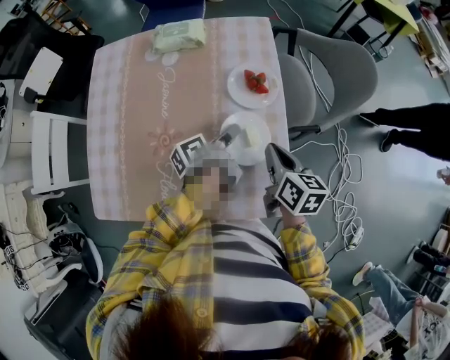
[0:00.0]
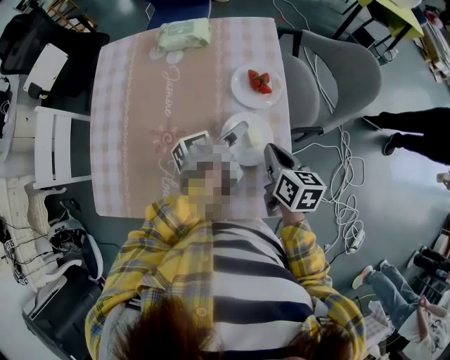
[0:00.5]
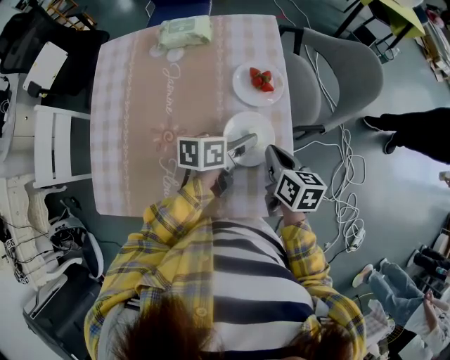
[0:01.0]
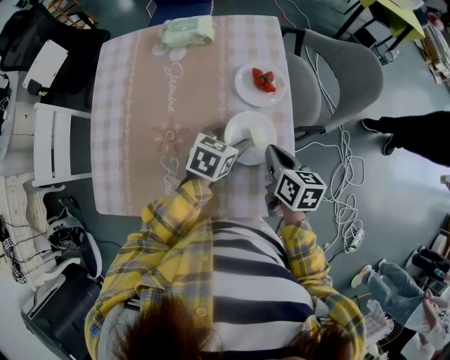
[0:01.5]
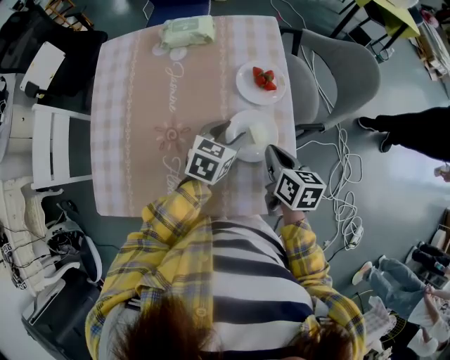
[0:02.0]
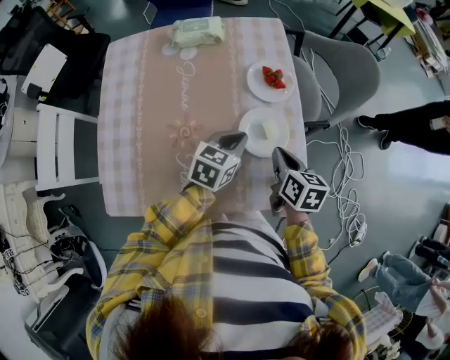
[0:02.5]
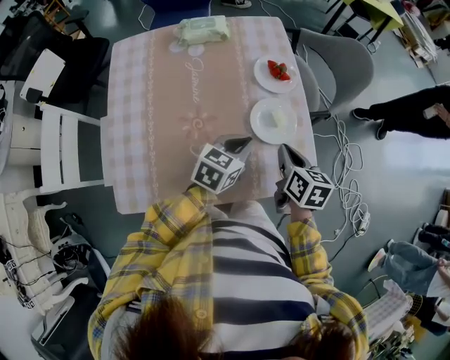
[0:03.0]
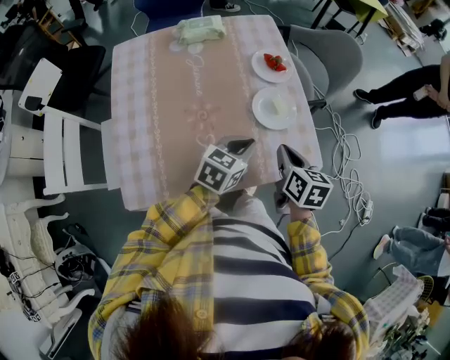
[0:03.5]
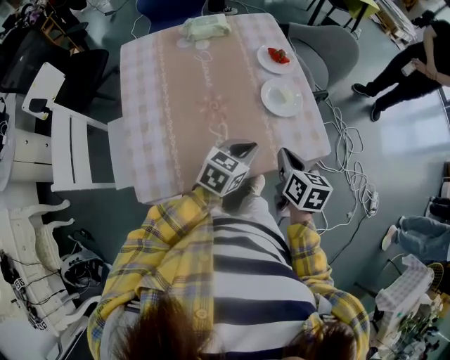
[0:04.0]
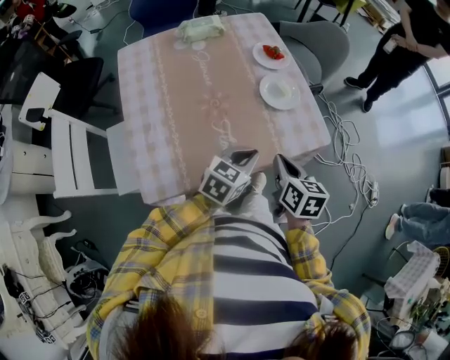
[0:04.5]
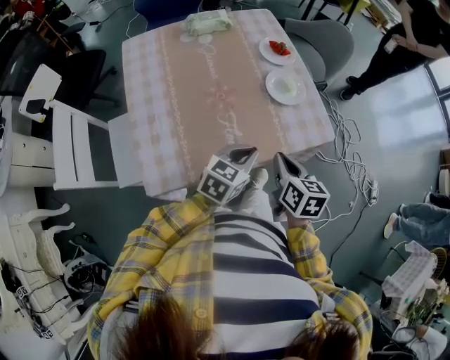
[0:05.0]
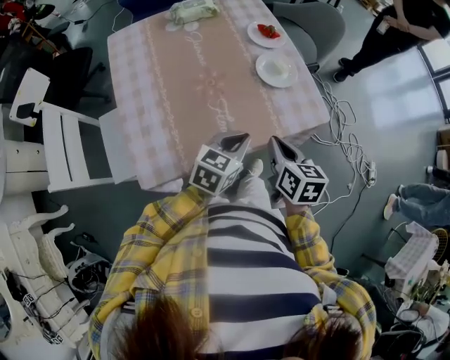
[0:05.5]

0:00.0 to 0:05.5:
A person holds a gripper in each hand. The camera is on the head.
0:02.0 to 0:03.5: The right gripper moves some 15 cm.
0:03.5 to 0:05.5: The right gripper ends up approximately 15 cm from where it was.

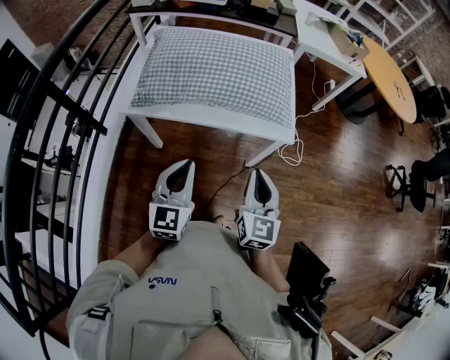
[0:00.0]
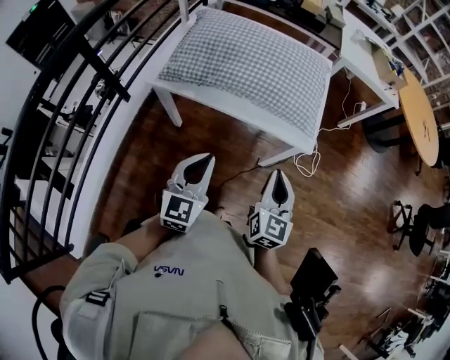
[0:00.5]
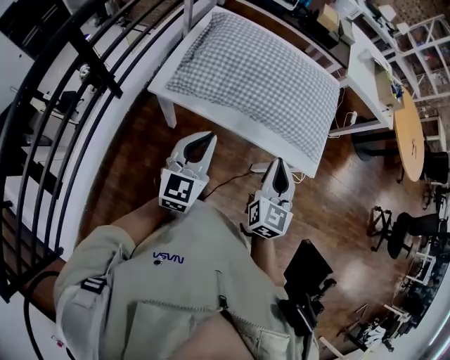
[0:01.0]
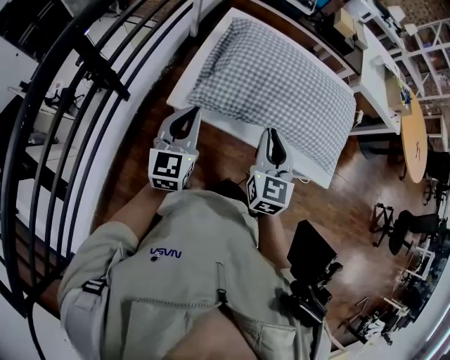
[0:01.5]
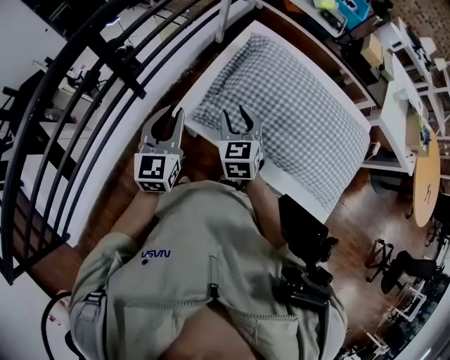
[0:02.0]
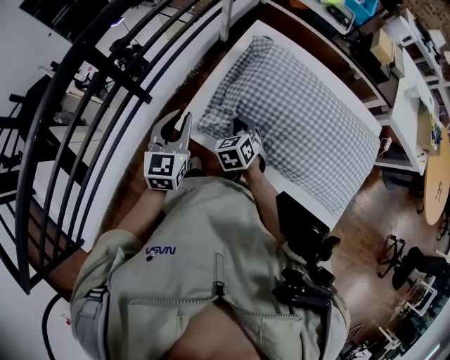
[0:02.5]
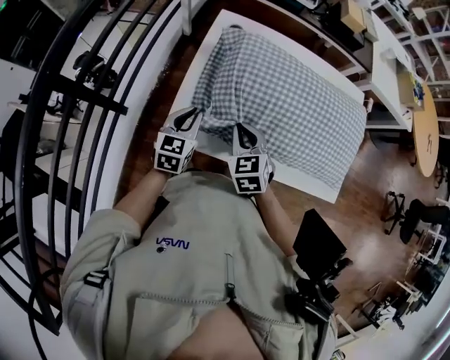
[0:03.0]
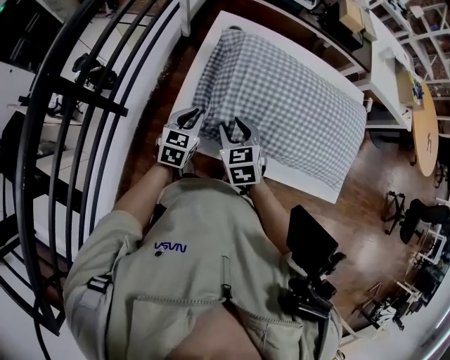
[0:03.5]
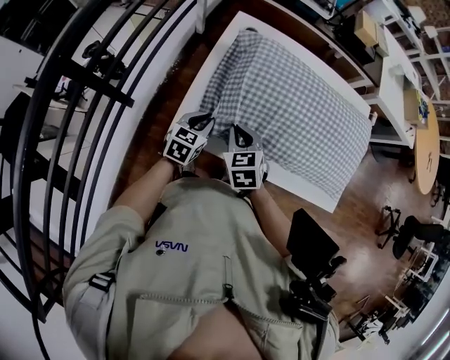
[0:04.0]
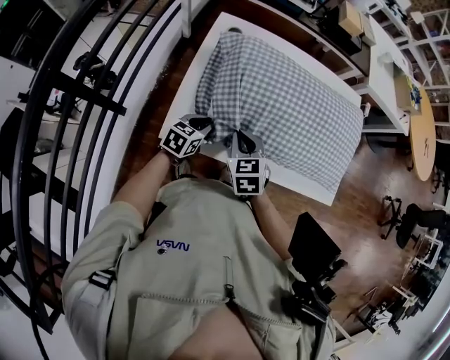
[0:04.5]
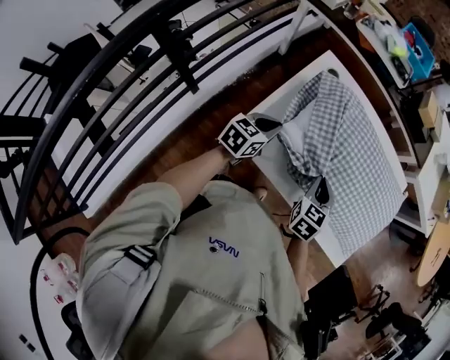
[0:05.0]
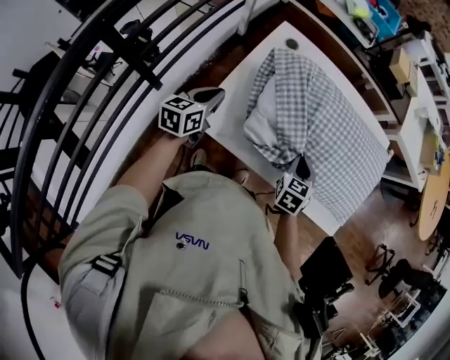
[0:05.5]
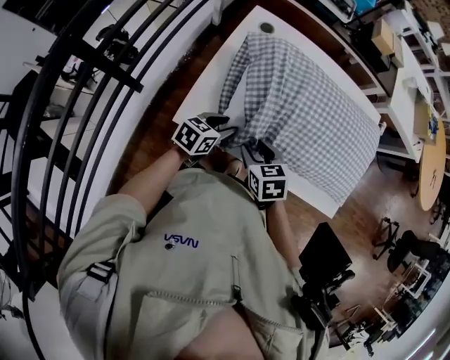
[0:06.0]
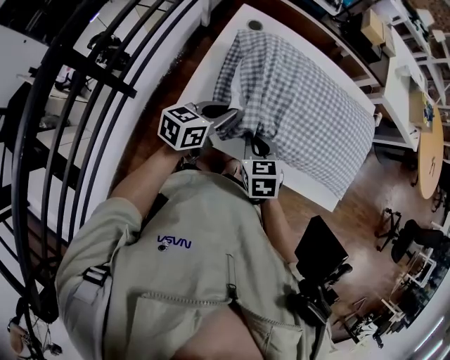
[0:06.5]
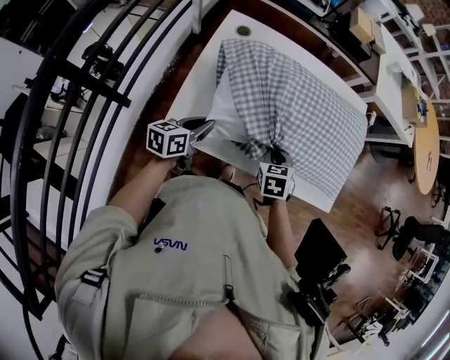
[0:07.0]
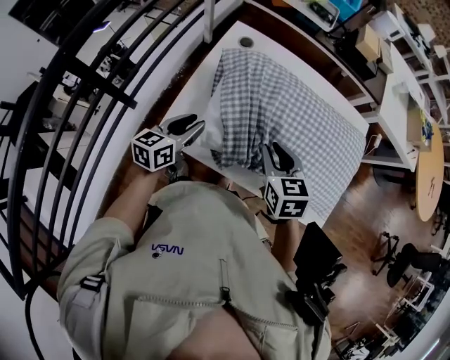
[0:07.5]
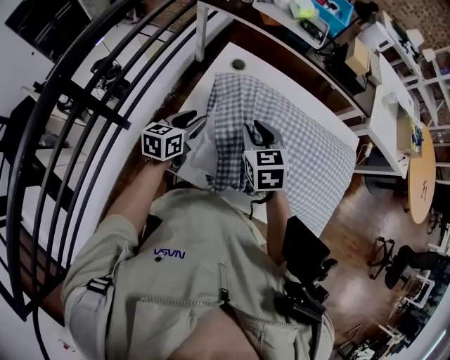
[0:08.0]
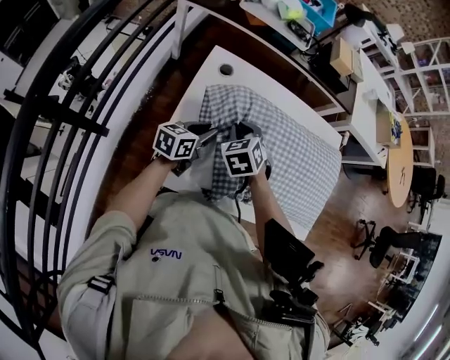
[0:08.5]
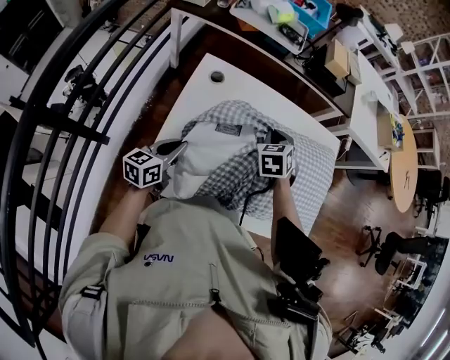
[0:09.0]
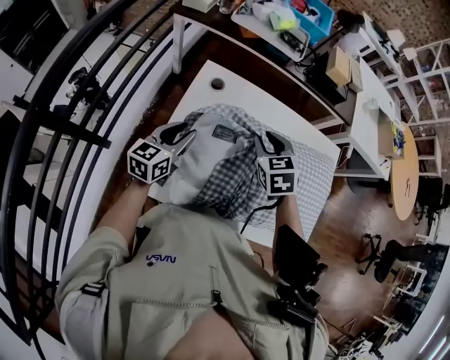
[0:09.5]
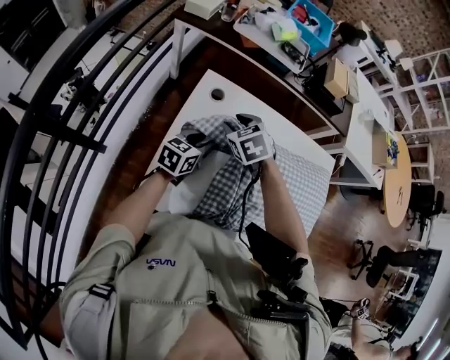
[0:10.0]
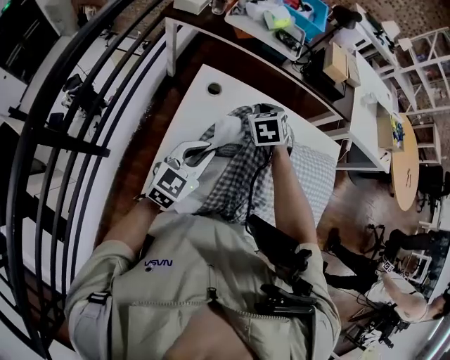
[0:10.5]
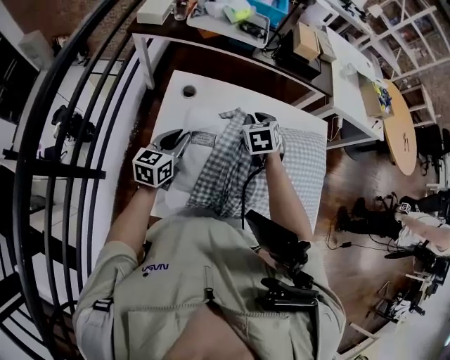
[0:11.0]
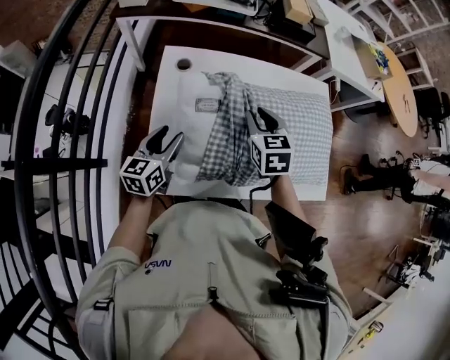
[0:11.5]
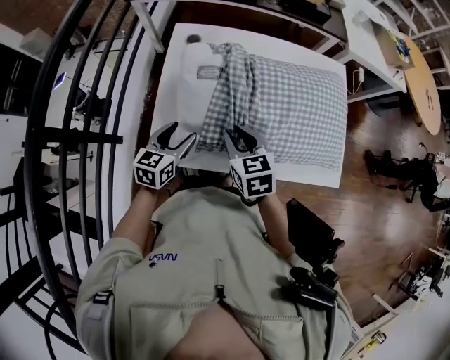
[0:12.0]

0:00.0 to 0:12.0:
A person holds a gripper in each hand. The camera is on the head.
0:00.0 to 0:02.0: The right gripper shifts by approximately 50 cm, swivels roughly 40 degrees, and opens its fingers; the left gripper changes place by roughly 40 cm, and changes its angle by about 30 degrees.
0:02.0 to 0:04.0: The right gripper travels downward by some 5 cm, and closes, while the left gripper is displaced downward, forward and to the right by roughly 20 cm, and changes its angle by roughly 40 degrees.
0:04.0 to 0:06.0: The two grippers go roughly 5 cm to the right. The right gripper opens its fingers; the left gripper swivels roughly 20 degrees, and opens.
0:06.0 to 0:08.0: The left gripper goes approximately 15 cm forward, to the left and upward, turns by about 30 degrees, and closes, then reopens. Meanwhile the right gripper shifts roughly 20 cm forward and upward, and closes.
0:08.0 to 0:10.0: The left gripper moves forward and backward over about 10 cm, changing direction 2 times, and closes, then opens again. Meanwhile the right gripper moves left and right over approximately 15 cm, changing direction 2 times, and closes and opens again.
0:10.0 to 0:12.0: The left gripper swings forward and backward, roughly 20 cm each way, with 2 reversals, and opens its fingers. Meanwhile the right gripper heads backward and to the right, covering some 25 cm, changes its angle by about 30 degrees, and closes, then reopens.

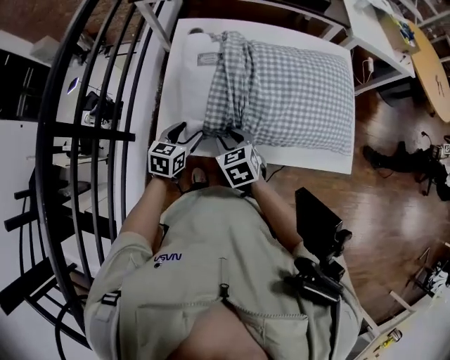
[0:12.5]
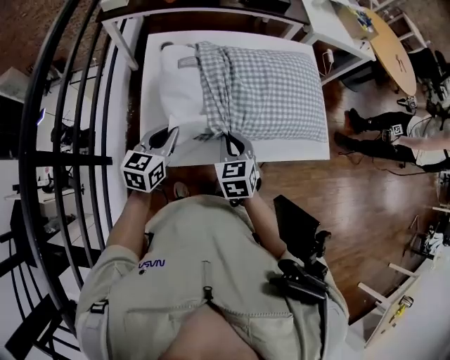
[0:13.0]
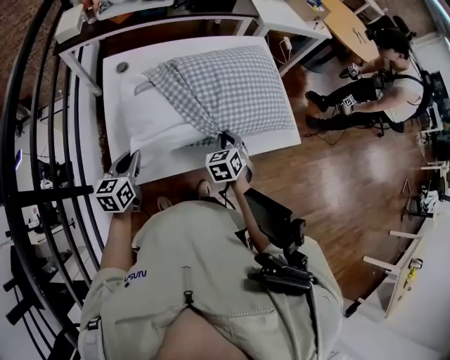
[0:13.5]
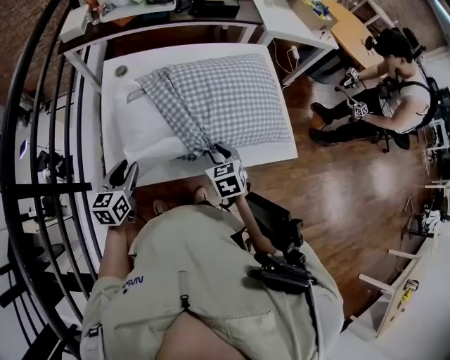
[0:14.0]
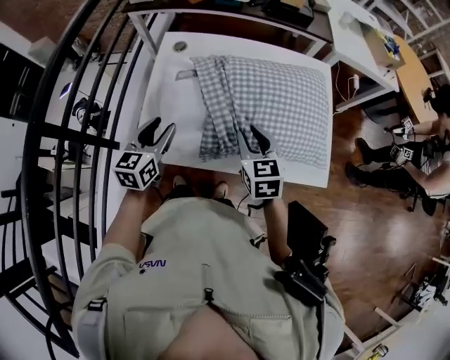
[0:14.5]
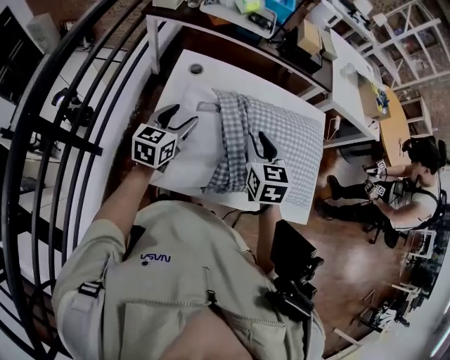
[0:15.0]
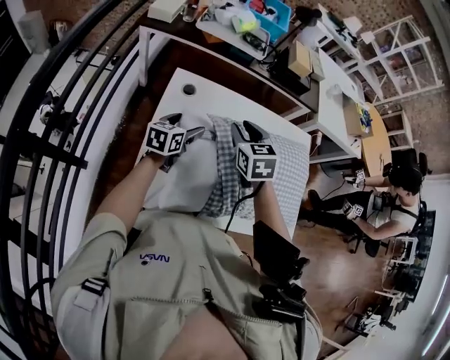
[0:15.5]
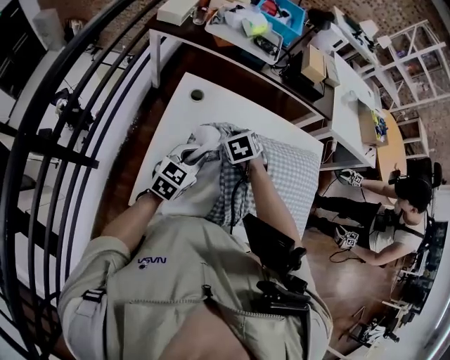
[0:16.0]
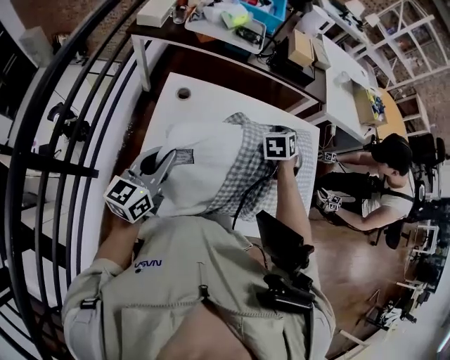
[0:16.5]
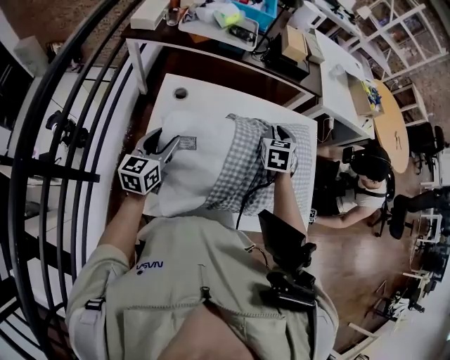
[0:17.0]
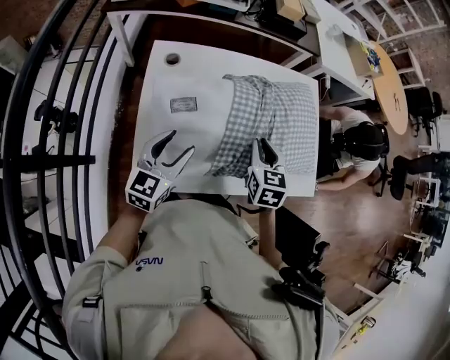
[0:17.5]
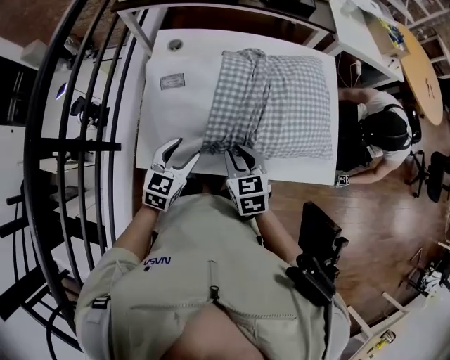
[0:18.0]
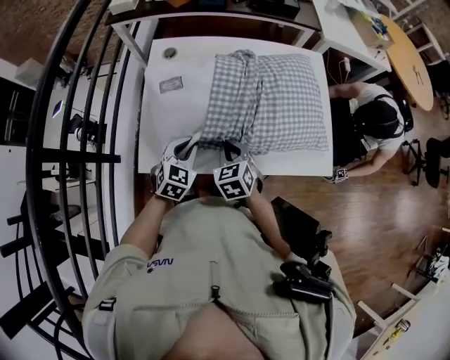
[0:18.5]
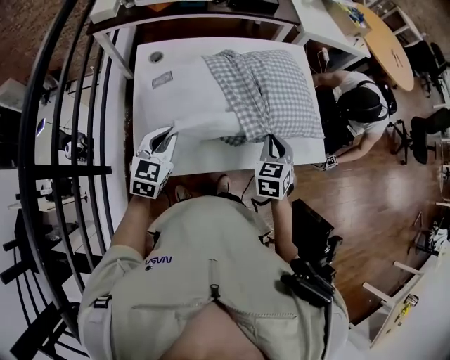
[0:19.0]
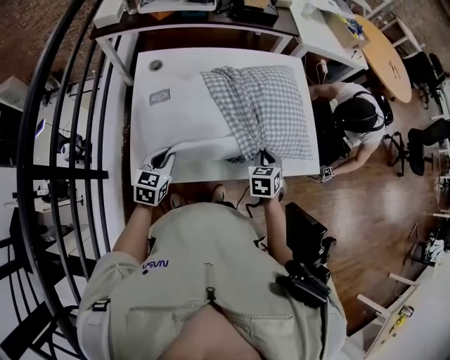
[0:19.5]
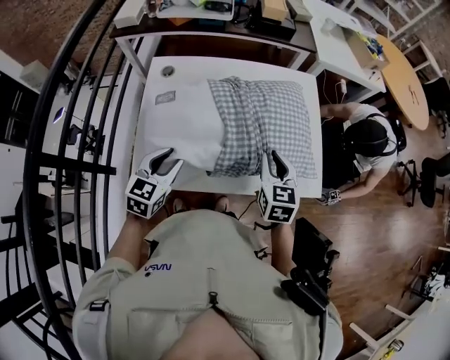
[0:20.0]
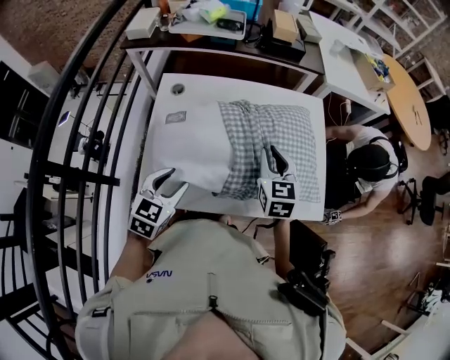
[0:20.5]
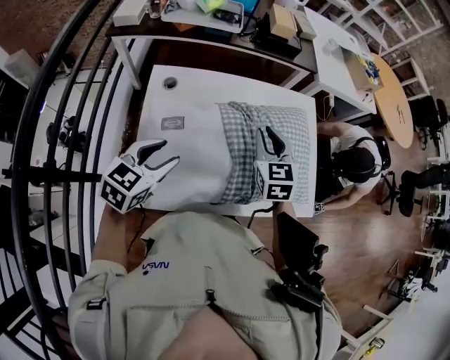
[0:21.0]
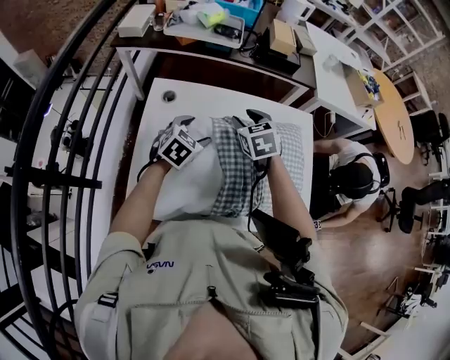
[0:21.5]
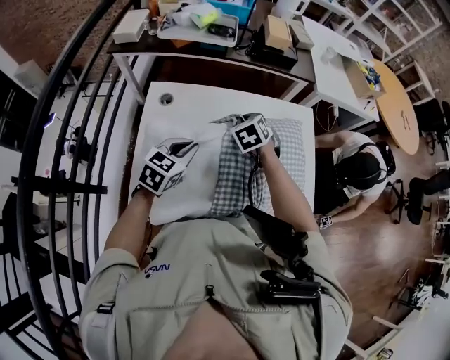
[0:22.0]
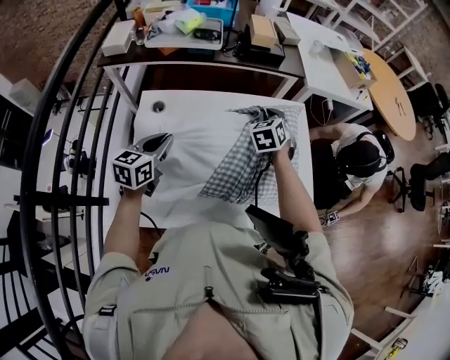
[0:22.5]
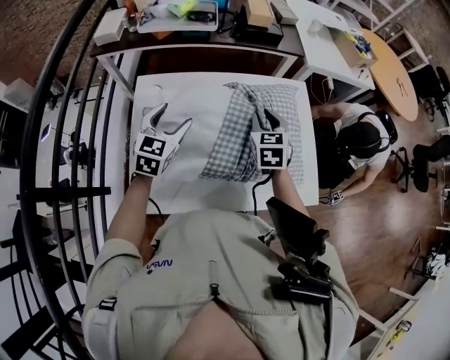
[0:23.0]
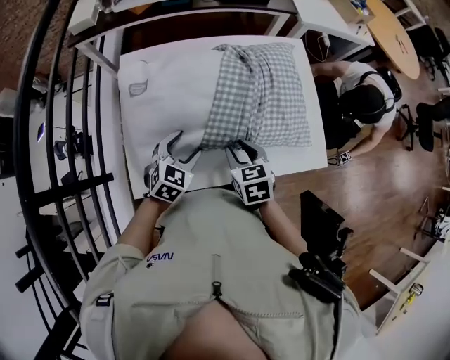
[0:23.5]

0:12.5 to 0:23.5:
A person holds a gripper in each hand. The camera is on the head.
0:12.5 to 0:14.5: The right gripper swings up and down, approximately 10 cm each way, with 2 reversals, swivels approximately 20 degrees, and closes, then reopens, while the left gripper swings up and down, roughly 15 cm each way, with 2 reversals, and closes, then opens again.
0:14.5 to 0:16.0: The right gripper travels forward and to the left by roughly 25 cm, turns by roughly 40 degrees, and closes, while the left gripper shifts some 15 cm forward, and closes up.
0:16.0 to 0:18.0: The left gripper goes forward and backward, roughly 15 cm each way, reversing 2 times, and opens. Meanwhile the right gripper goes some 30 cm backward and to the right, turns by approximately 30 degrees, and opens its fingers.
0:18.0 to 0:20.0: The right gripper travels to the right, forward and upward by roughly 15 cm, and swivels some 20 degrees, while the left gripper moves up and down over roughly 10 cm, changing direction 3 times, and closes, then reopens.
0:20.0 to 0:21.5: The right gripper is displaced forward and to the left by roughly 25 cm, changes its angle by approximately 30 degrees, and opens its fingers, while the left gripper shifts about 20 cm forward, and opens its fingers.
0:21.5 to 0:23.5: The right gripper is displaced backward and downward by roughly 25 cm, swivels approximately 20 degrees, and closes, then opens again, while the left gripper goes forward and backward, approximately 15 cm each way, reversing 2 times, and closes and opens again.
